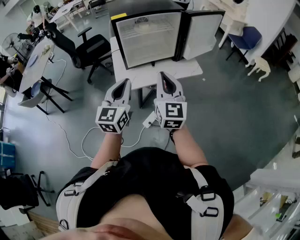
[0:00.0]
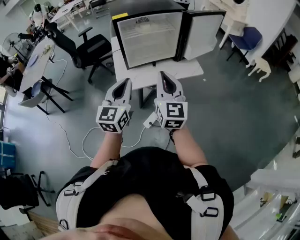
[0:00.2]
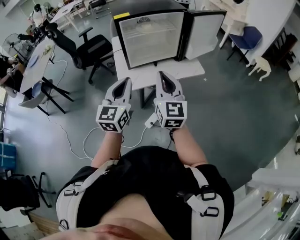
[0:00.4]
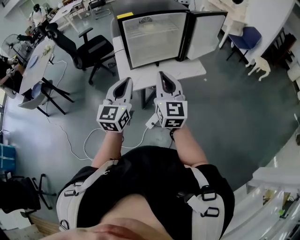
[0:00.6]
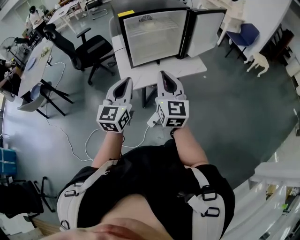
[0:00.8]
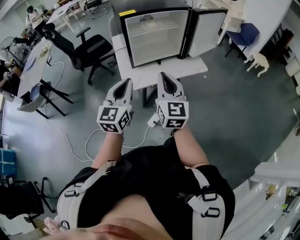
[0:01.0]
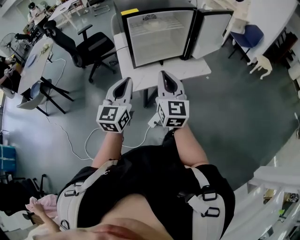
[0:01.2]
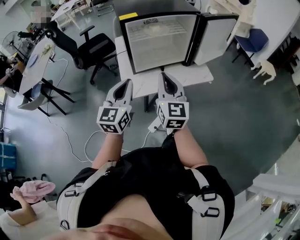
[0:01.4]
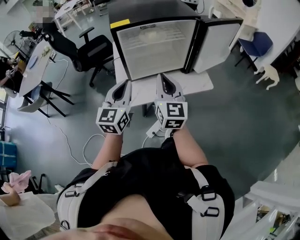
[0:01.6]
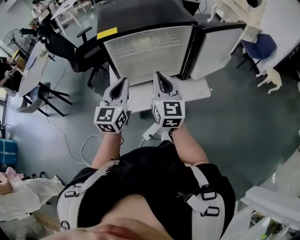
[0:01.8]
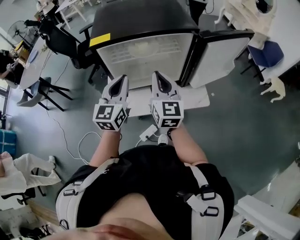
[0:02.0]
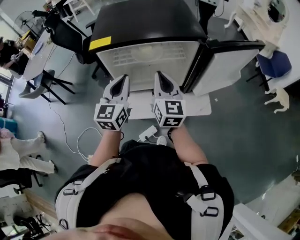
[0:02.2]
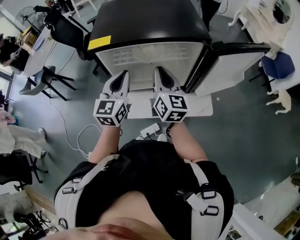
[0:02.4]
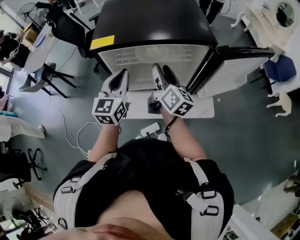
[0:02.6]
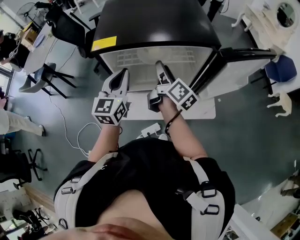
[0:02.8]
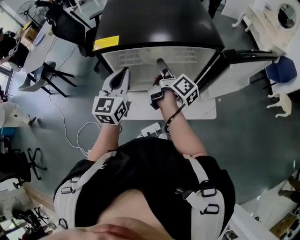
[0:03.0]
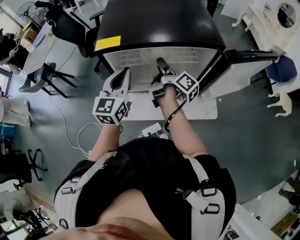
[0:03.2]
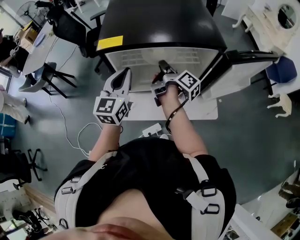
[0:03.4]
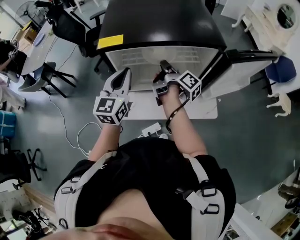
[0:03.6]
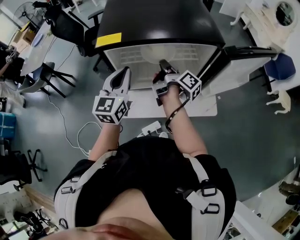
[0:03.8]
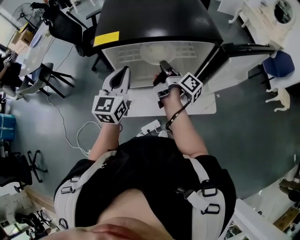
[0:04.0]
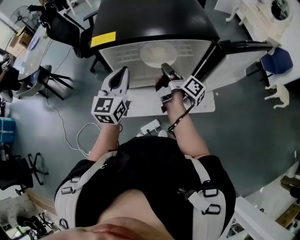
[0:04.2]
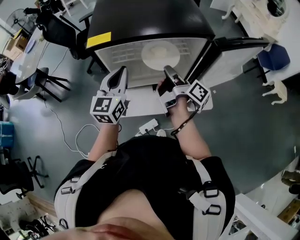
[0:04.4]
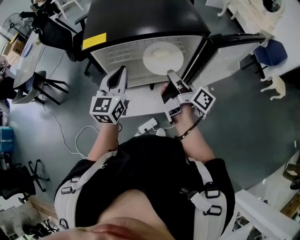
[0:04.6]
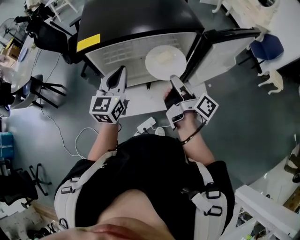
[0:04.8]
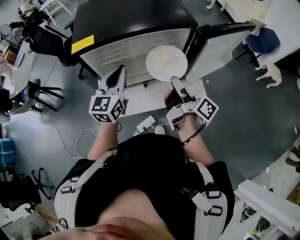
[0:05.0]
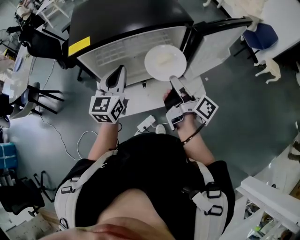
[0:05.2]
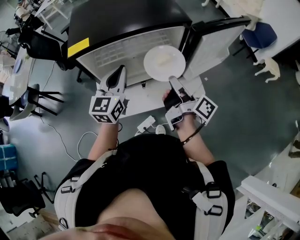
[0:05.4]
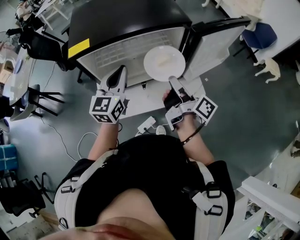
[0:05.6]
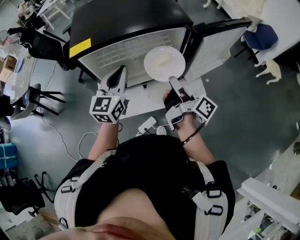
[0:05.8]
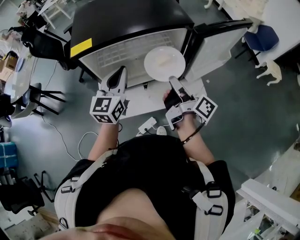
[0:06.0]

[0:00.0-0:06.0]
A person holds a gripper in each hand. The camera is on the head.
0:00.0 to 0:01.6: The grippers both shift forward by approximately 15 cm.
0:01.6 to 0:03.0: Both grippers move forward, approximately 25 cm. The right gripper rolls clockwise, seen from behind, by approximately 70 degrees, and opens.
0:03.0 to 0:04.4: The right gripper travels backward by some 5 cm, and closes its fingers.
0:04.4 to 0:06.0: The left gripper is displaced to the right by about 5 cm; the right gripper heads to the right and backward, covering about 10 cm.

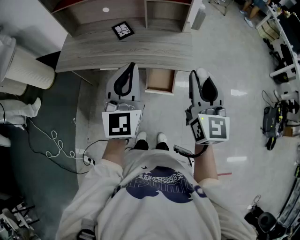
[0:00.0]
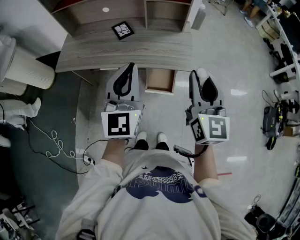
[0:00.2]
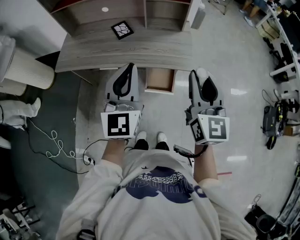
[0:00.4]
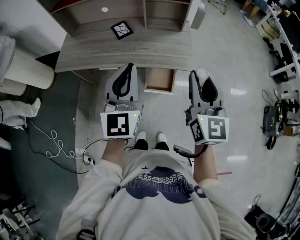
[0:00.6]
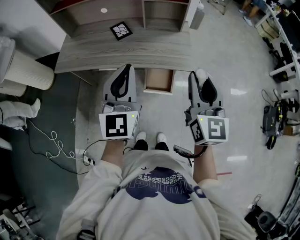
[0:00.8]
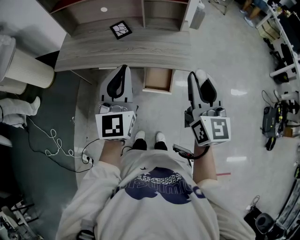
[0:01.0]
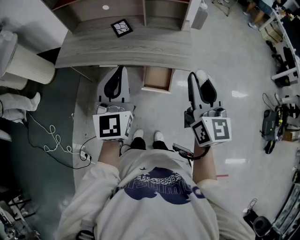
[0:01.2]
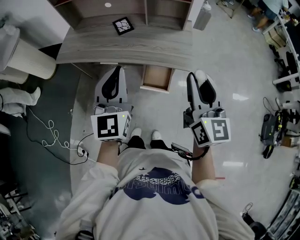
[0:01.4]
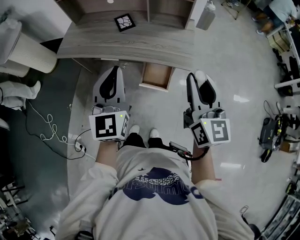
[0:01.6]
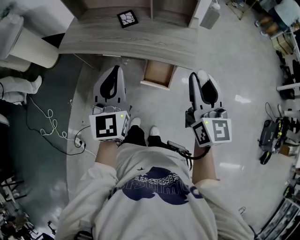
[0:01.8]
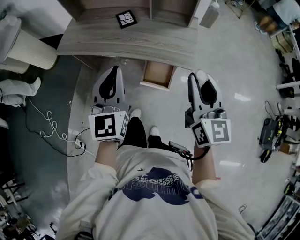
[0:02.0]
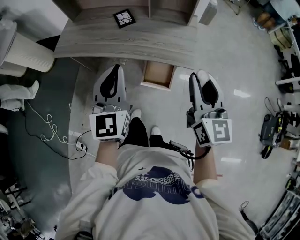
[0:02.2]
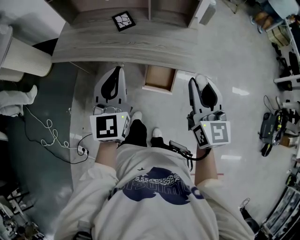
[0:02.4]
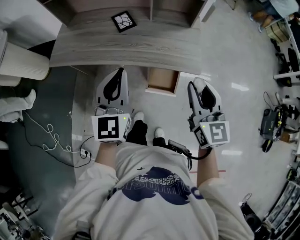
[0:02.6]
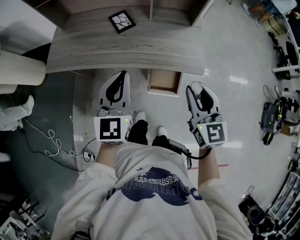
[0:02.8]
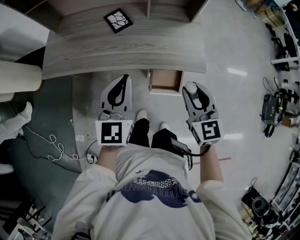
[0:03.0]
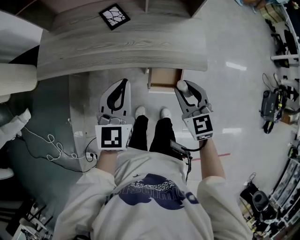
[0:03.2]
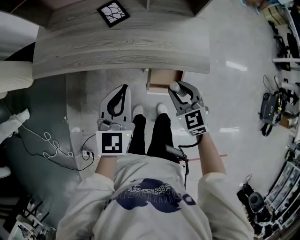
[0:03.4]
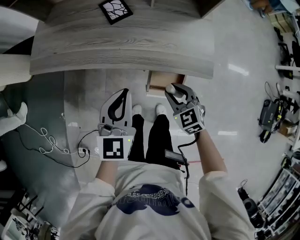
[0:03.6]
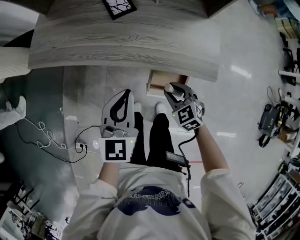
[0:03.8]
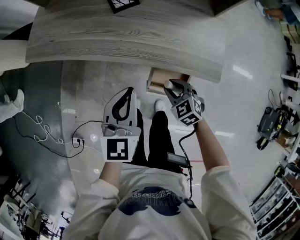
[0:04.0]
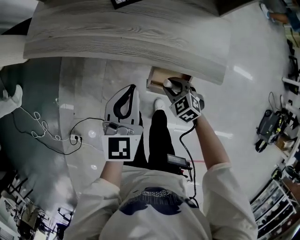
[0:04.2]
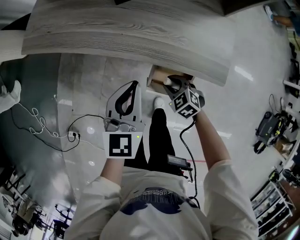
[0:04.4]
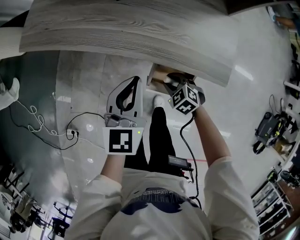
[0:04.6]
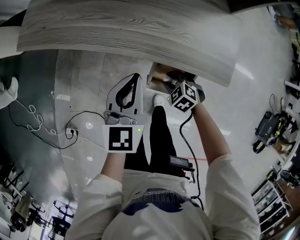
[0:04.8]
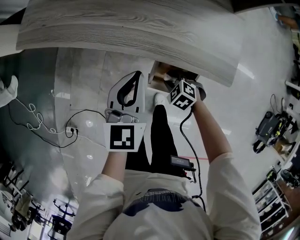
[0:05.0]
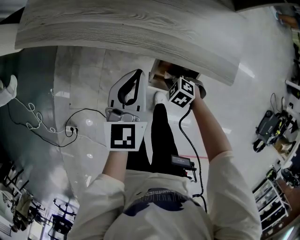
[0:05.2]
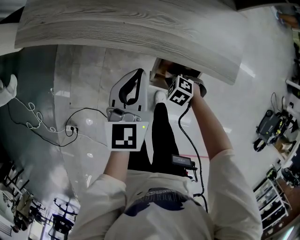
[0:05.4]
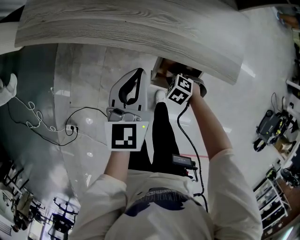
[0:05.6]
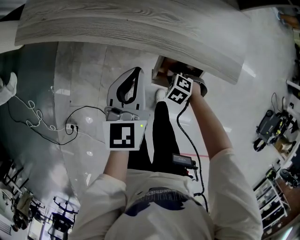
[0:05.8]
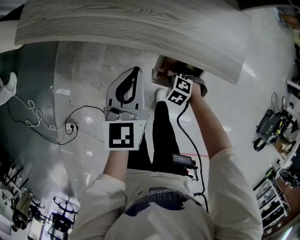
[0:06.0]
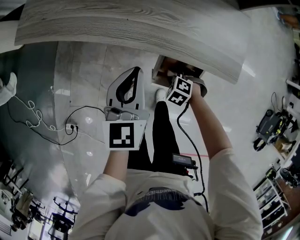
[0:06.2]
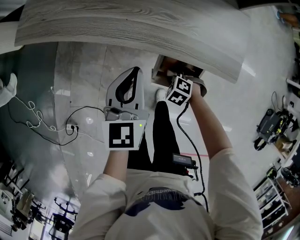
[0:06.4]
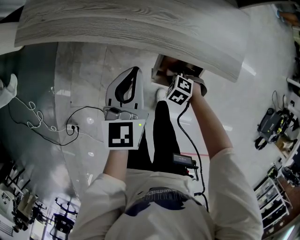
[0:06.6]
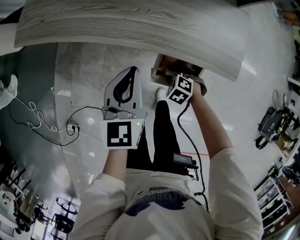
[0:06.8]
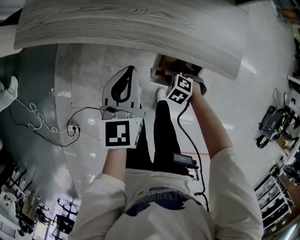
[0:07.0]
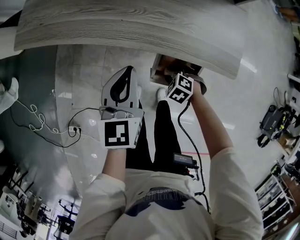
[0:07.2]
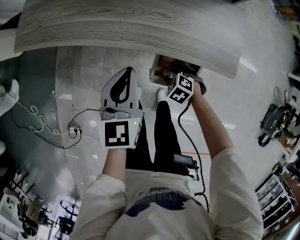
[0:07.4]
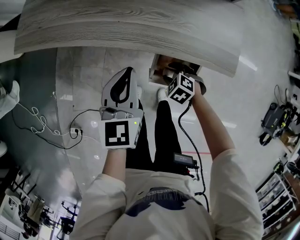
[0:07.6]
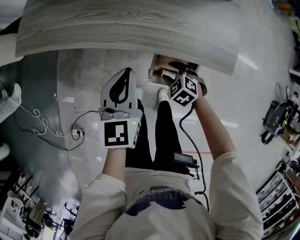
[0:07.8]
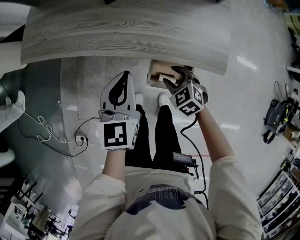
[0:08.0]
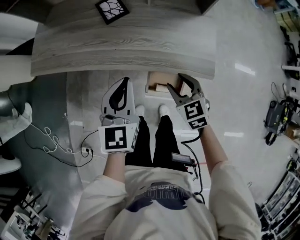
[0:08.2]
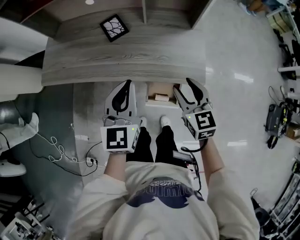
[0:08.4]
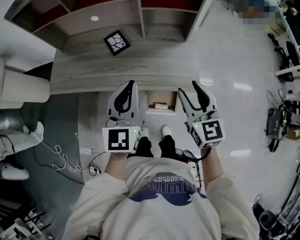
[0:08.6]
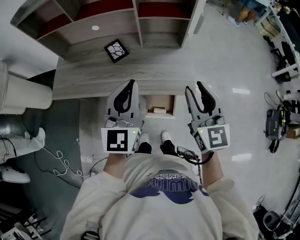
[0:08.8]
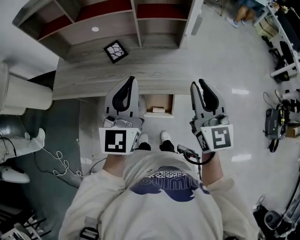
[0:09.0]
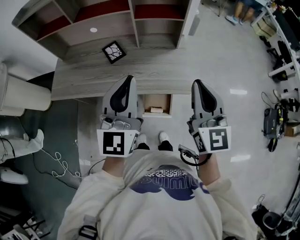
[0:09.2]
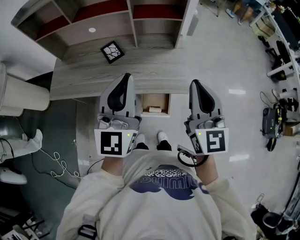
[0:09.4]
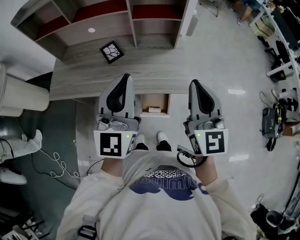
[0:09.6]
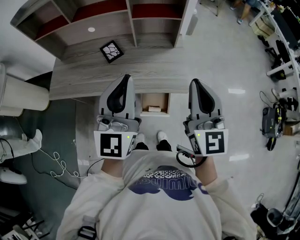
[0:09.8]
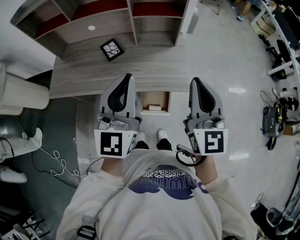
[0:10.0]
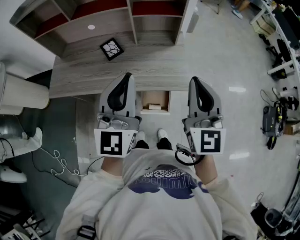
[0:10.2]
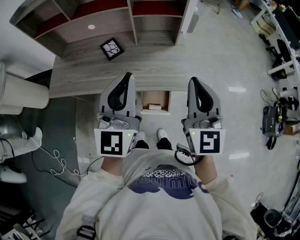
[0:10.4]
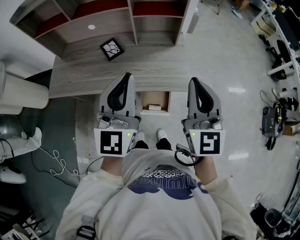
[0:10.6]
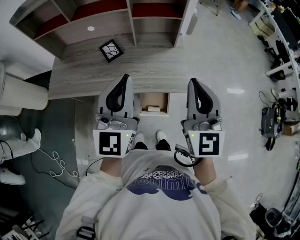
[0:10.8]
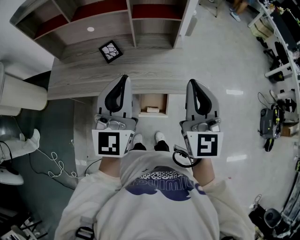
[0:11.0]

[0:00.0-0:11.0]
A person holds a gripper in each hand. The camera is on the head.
0:00.0 to 0:01.6: The right gripper shifts by roughly 5 cm.
0:01.6 to 0:03.2: The left gripper shifts some 20 cm forward, downward and to the left, and turns by roughly 20 degrees, while the right gripper travels downward, forward and to the left by some 25 cm, and angles its fingers downward, by about 30 degrees.
0:03.2 to 0:04.8: The right gripper is displaced downward by roughly 35 cm, and tilts its fingers approximately 40 degrees downward, while the left gripper heads downward, covering roughly 15 cm.
0:04.8 to 0:06.2: There are only small adjustments of the grippers.
0:06.2 to 0:07.8: The right gripper heads upward, covering approximately 5 cm.
0:07.8 to 0:09.4: The left gripper shifts approximately 40 cm upward, and points its fingers approximately 40 degrees further upward, while the right gripper is displaced upward by about 60 cm, angles its fingers upward, by about 70 degrees, and closes up.
0:09.4 to 0:11.0: The grippers make only small movements.

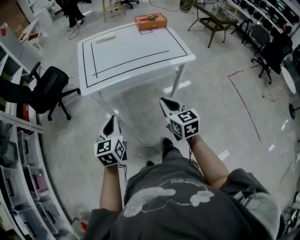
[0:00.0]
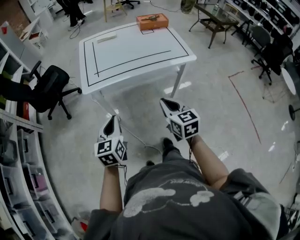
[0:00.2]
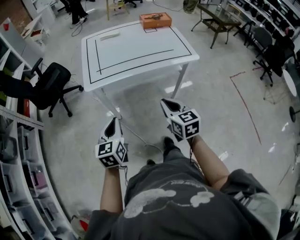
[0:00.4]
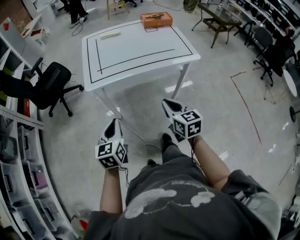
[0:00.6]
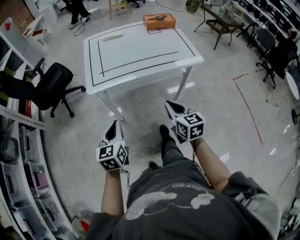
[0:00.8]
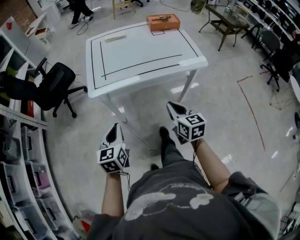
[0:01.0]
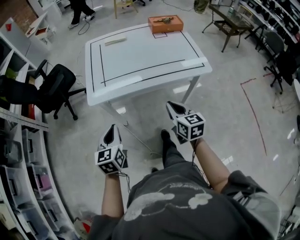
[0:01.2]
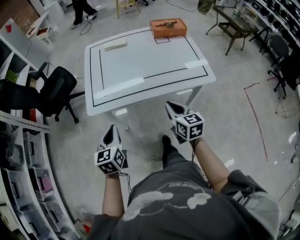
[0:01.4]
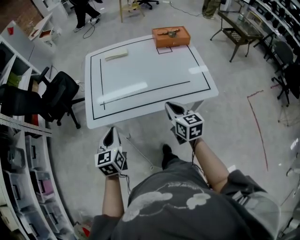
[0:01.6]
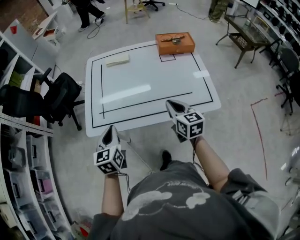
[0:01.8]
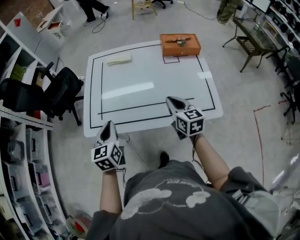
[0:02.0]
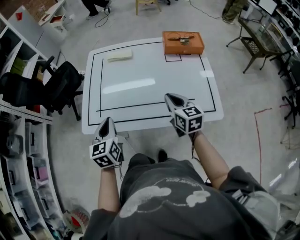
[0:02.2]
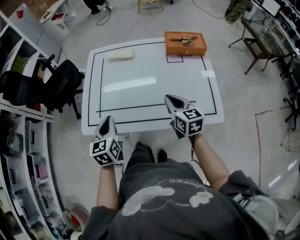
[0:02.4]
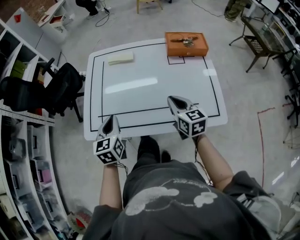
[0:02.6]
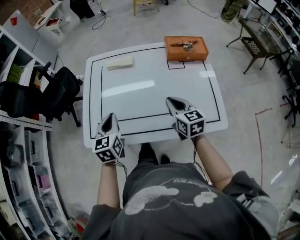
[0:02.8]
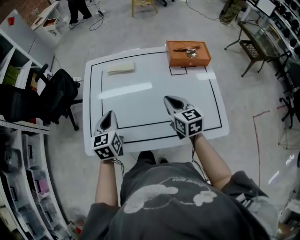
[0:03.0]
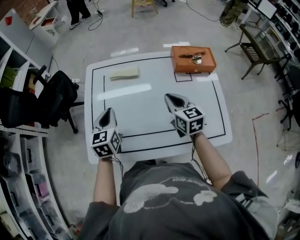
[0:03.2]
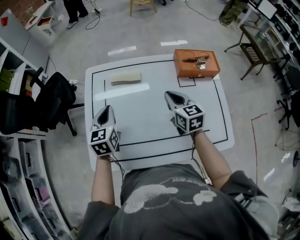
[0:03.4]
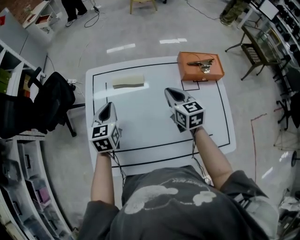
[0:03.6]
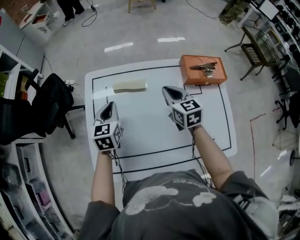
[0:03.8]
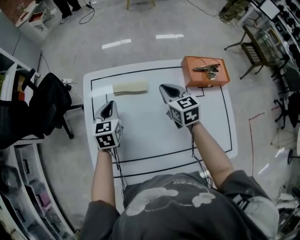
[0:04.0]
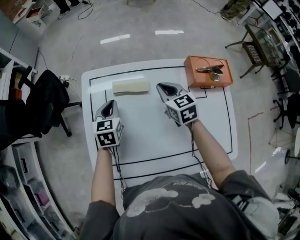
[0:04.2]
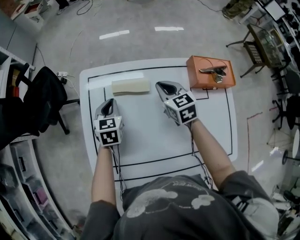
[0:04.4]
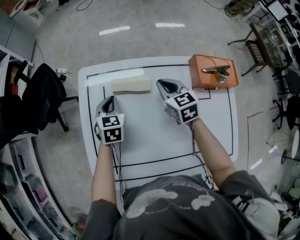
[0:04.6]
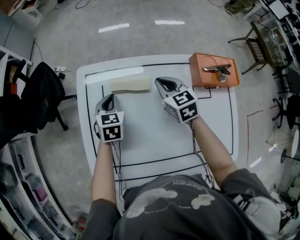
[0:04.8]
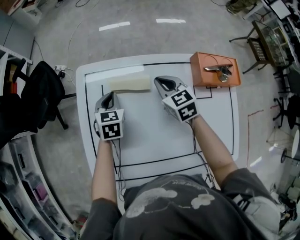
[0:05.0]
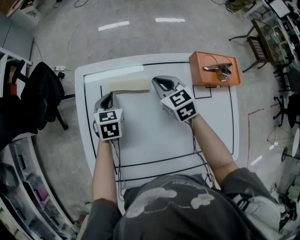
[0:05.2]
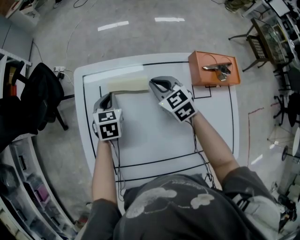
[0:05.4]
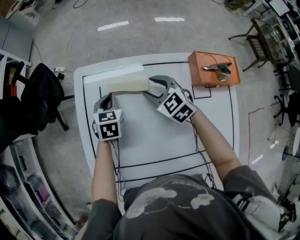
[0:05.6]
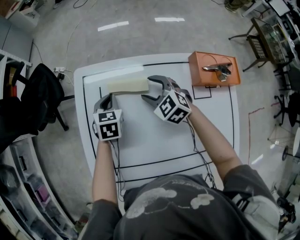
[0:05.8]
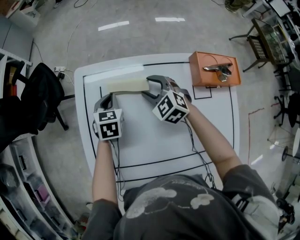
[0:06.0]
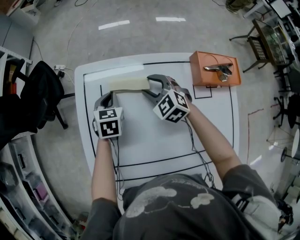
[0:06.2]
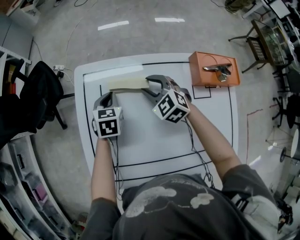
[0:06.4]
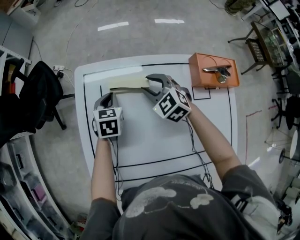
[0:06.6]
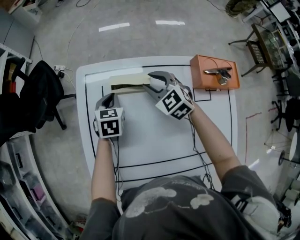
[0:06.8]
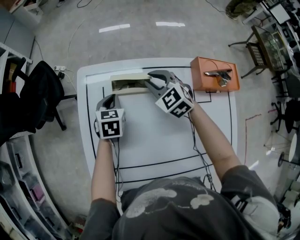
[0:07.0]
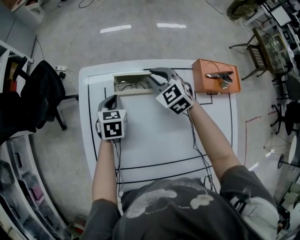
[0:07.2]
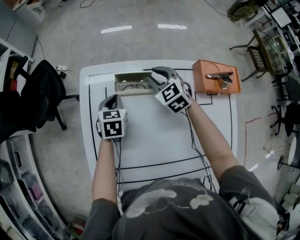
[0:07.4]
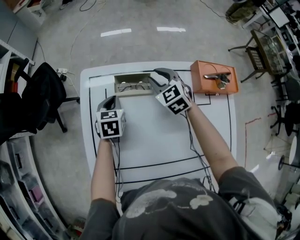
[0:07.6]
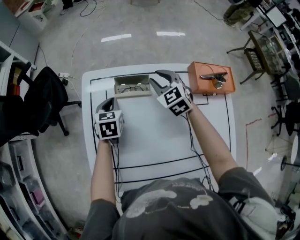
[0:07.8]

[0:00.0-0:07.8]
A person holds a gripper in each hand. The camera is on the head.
0:00.0 to 0:01.6: The grippers both shift forward by about 20 cm.
0:01.6 to 0:03.2: The grippers both shift forward by approximately 30 cm.
0:03.2 to 0:04.6: The right gripper travels forward by some 20 cm; the left gripper is displaced forward and downward by roughly 25 cm.
0:04.6 to 0:06.2: The right gripper ends up some 5 cm from where it was, swivels roughly 40 degrees, and opens.
0:06.2 to 0:07.8: The right gripper goes about 5 cm upward.
